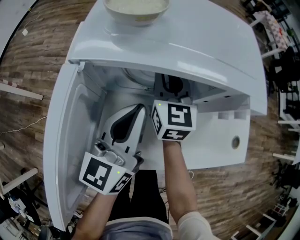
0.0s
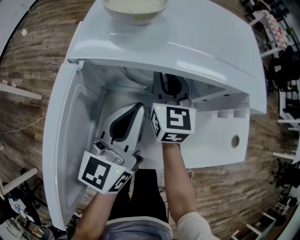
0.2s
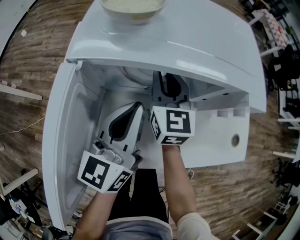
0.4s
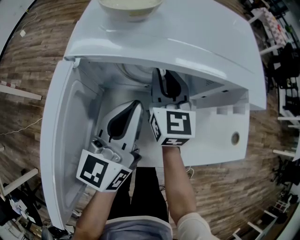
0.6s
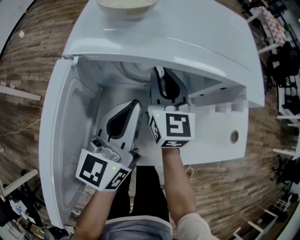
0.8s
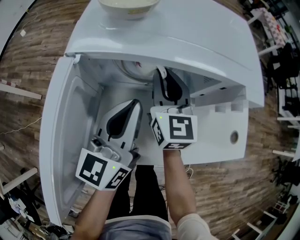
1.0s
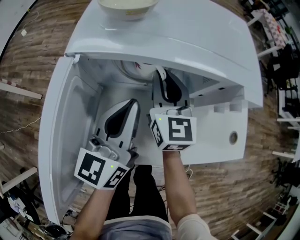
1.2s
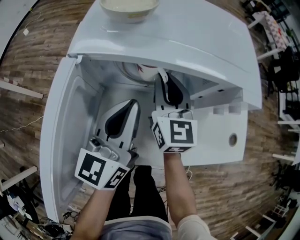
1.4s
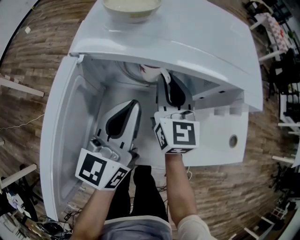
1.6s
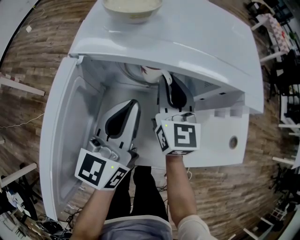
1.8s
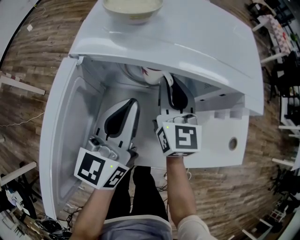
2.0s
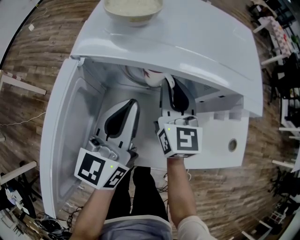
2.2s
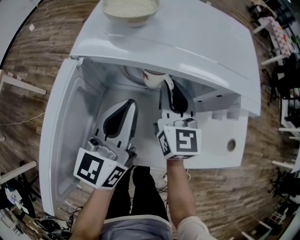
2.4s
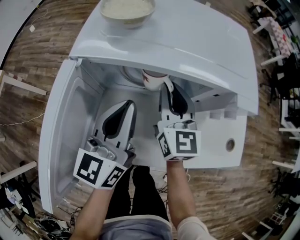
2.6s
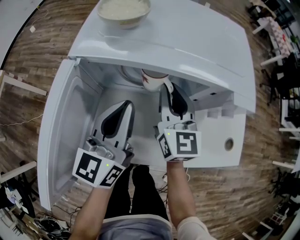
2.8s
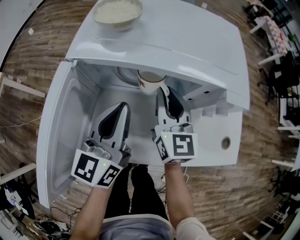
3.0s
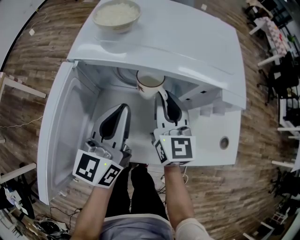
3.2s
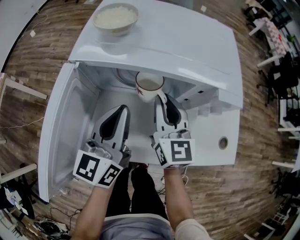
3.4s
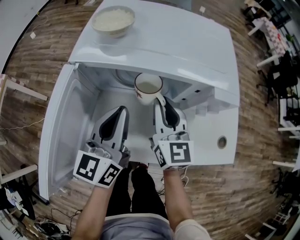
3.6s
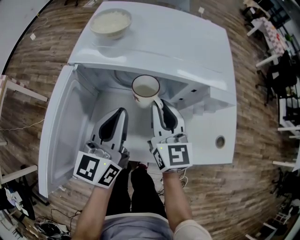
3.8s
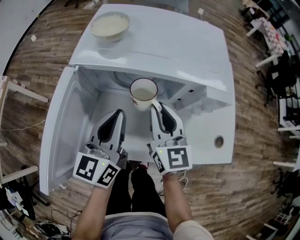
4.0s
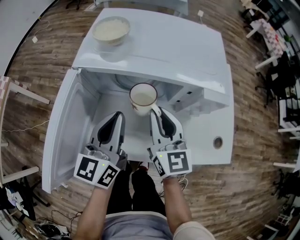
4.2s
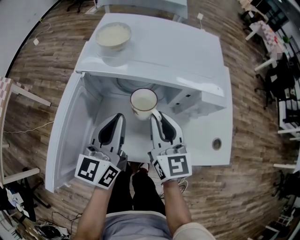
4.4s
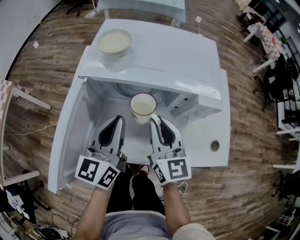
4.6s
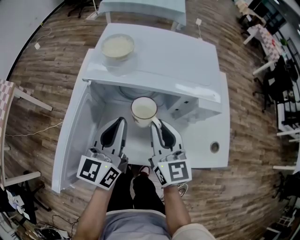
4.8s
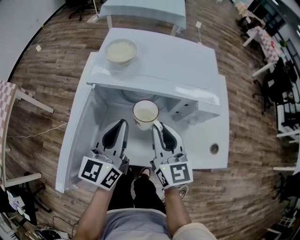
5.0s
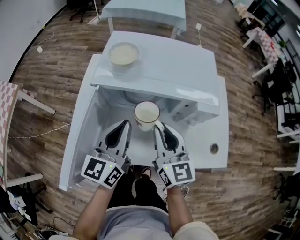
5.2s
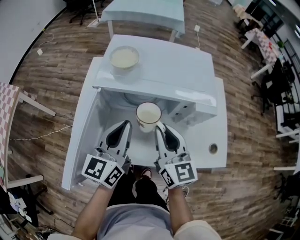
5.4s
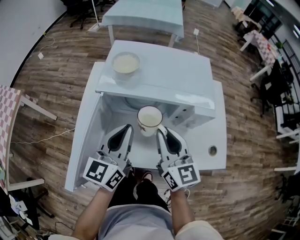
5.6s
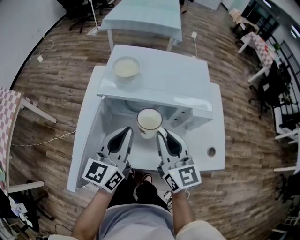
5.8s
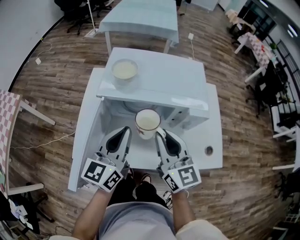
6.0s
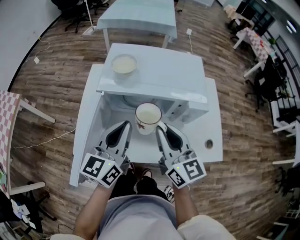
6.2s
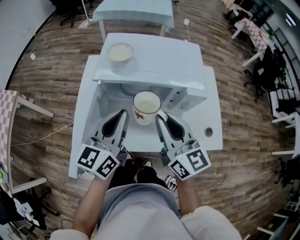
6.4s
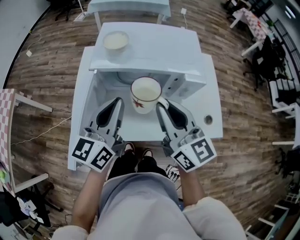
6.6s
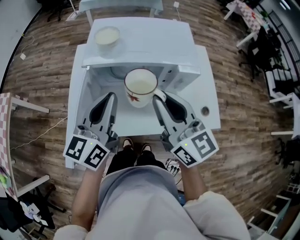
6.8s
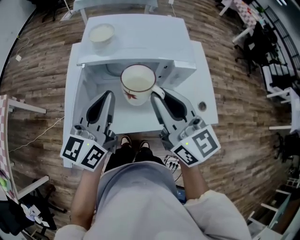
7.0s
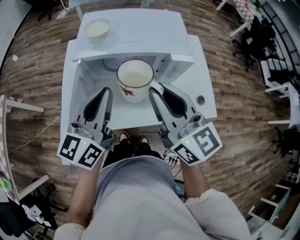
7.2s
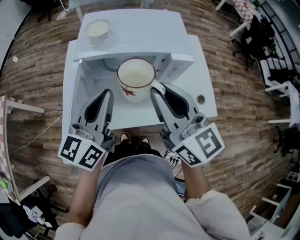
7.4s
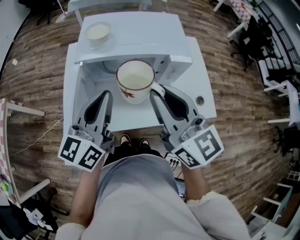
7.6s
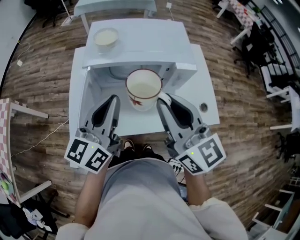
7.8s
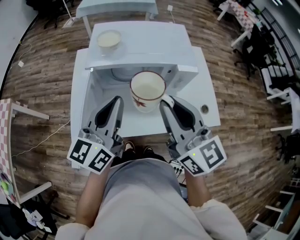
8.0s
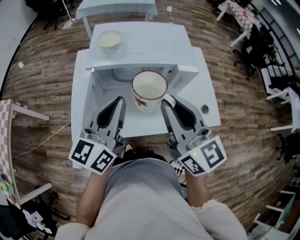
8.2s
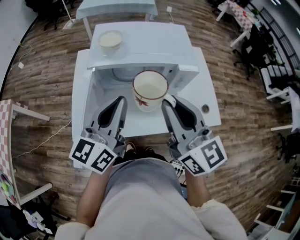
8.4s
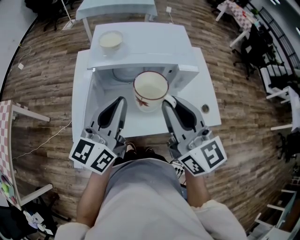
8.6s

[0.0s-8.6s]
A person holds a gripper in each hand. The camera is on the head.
0.0s to 1.4s: The right gripper changes place by some 5 cm.
1.4s to 2.8s: The grippers stay close to where they were, moving slightly.
2.8s to 4.4s: The right gripper travels backward by approximately 10 cm.
4.4s to 5.8s: The two grippers go some 10 cm upward.
5.8s to 7.2s: The right gripper heads upward and backward, covering some 10 cm. The left gripper travels upward by some 5 cm.
7.2s to 8.6s: There are only small adjustments of the grippers.

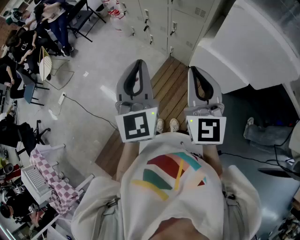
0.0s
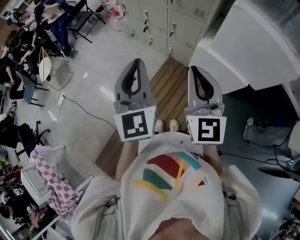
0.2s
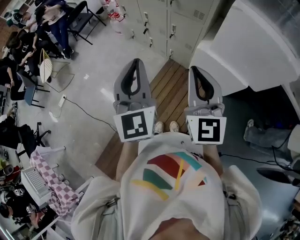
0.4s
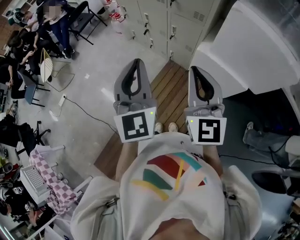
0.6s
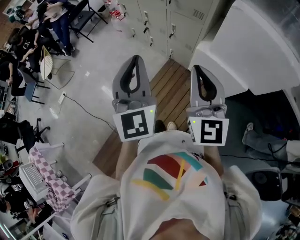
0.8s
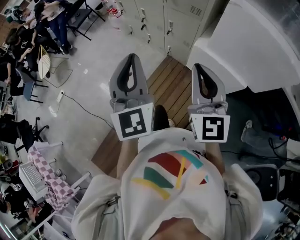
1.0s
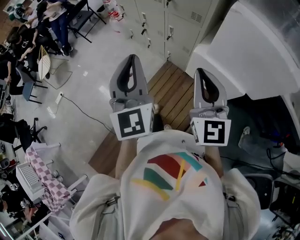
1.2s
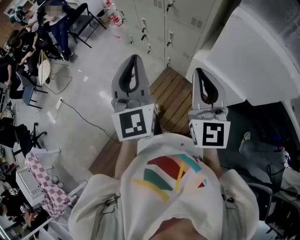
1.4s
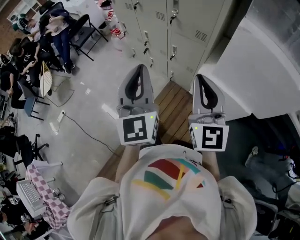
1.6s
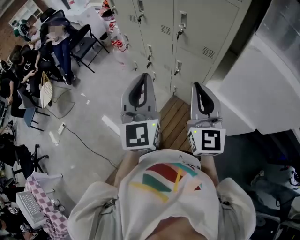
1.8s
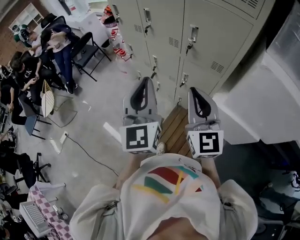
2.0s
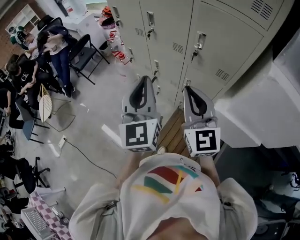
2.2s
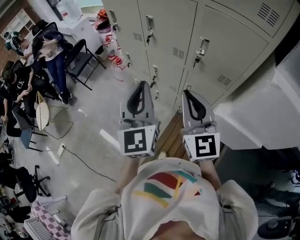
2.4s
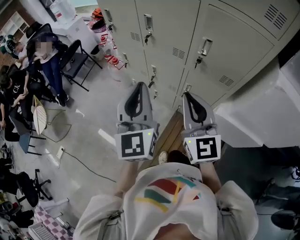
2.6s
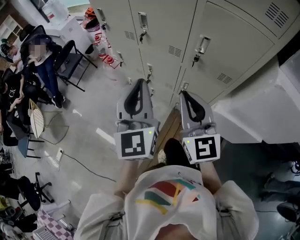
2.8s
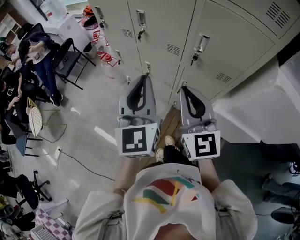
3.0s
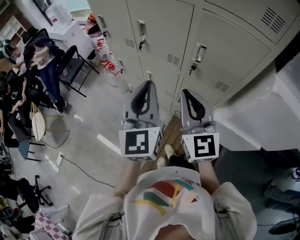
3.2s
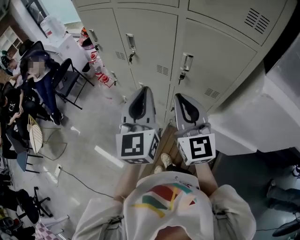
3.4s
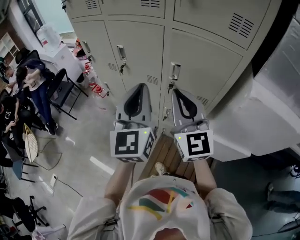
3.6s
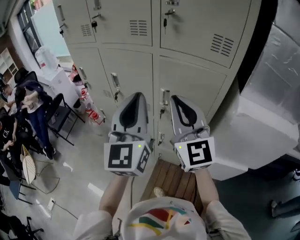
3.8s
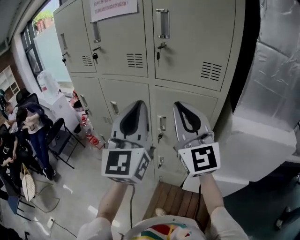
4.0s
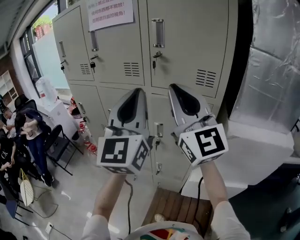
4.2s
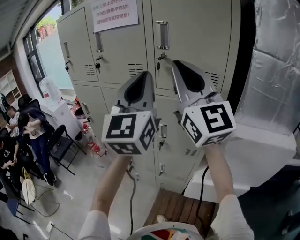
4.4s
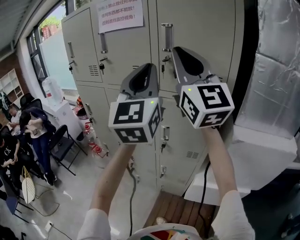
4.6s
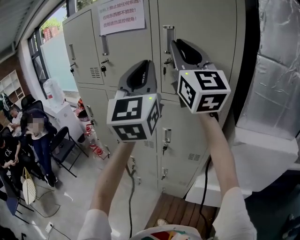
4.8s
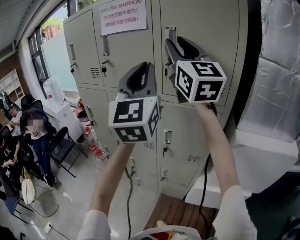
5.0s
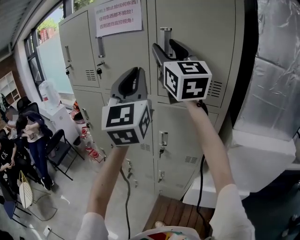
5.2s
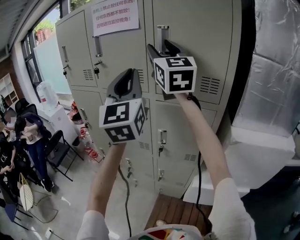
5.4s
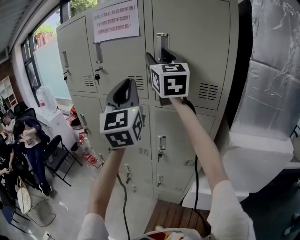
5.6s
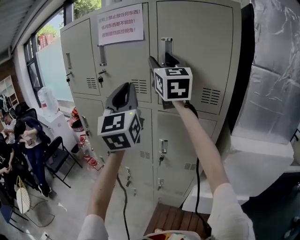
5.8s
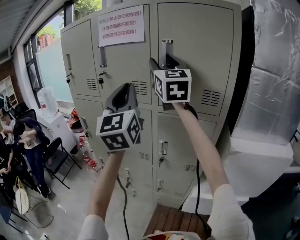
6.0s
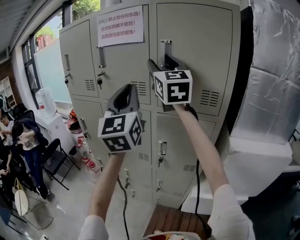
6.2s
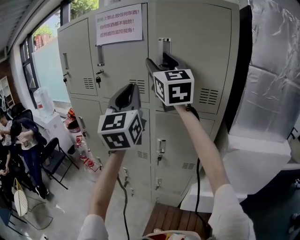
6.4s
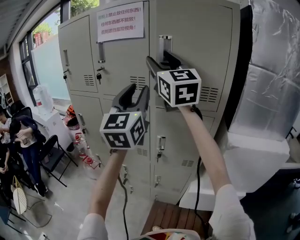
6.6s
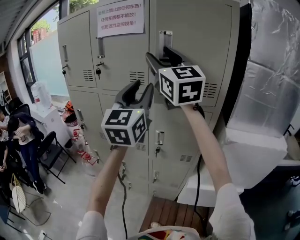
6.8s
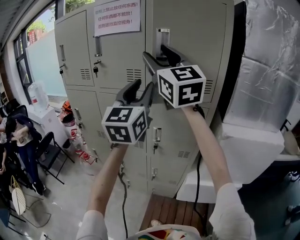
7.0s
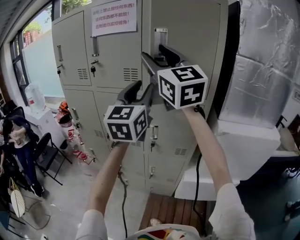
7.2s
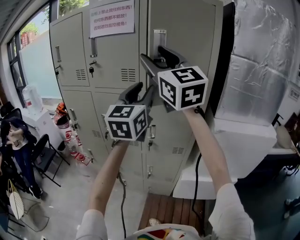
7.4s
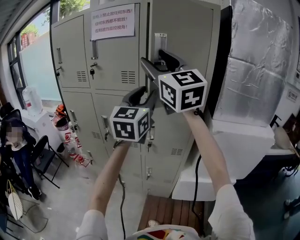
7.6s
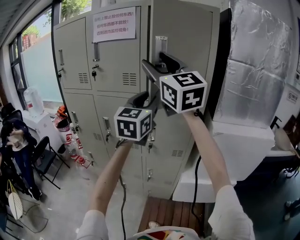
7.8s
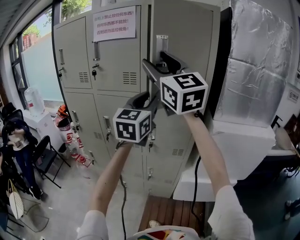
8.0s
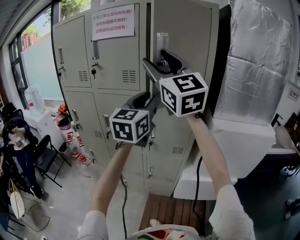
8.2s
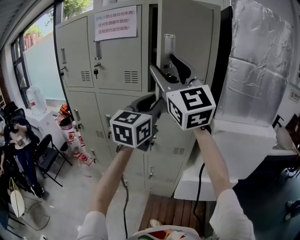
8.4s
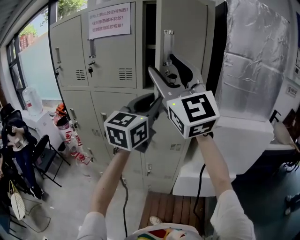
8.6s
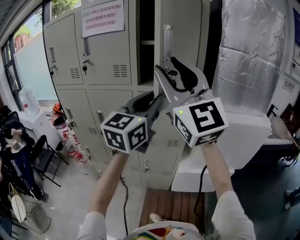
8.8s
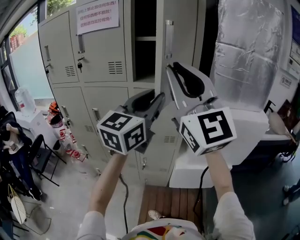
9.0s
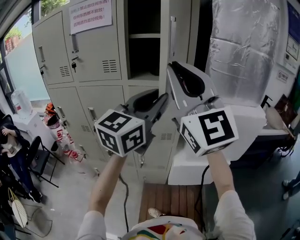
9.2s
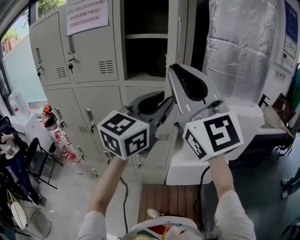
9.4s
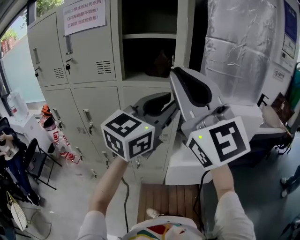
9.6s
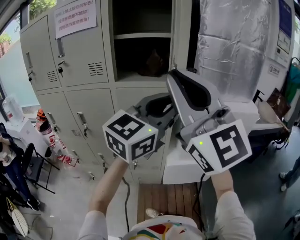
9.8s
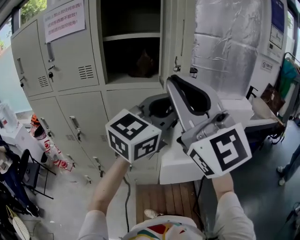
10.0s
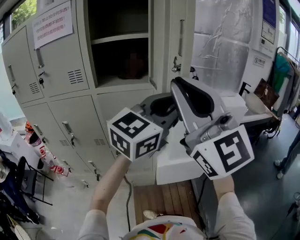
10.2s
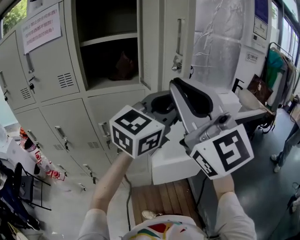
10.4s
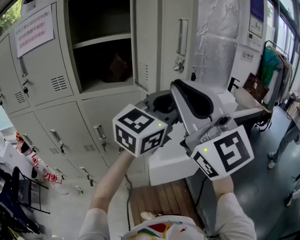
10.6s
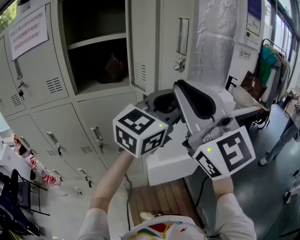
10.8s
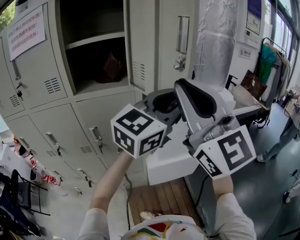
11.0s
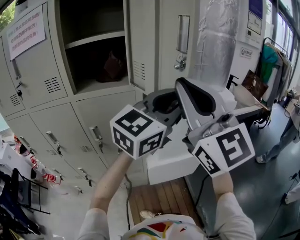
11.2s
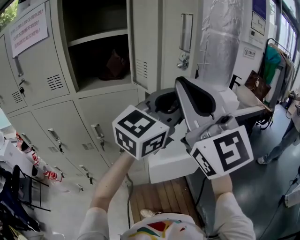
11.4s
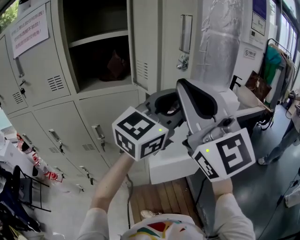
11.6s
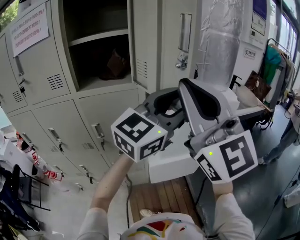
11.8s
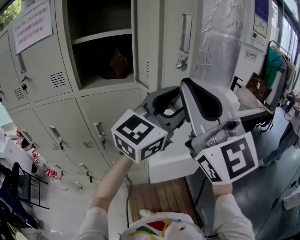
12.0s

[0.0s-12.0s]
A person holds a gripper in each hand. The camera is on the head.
0.0s to 1.6s: The left gripper is displaced forward by some 15 cm. The right gripper shifts roughly 15 cm forward and to the right.
1.6s to 3.0s: The right gripper moves forward and to the left, approximately 30 cm. Meanwhile the left gripper travels forward by about 25 cm.
3.0s to 4.4s: The left gripper is displaced upward and to the right by about 30 cm, and rotates some 30 degrees. The right gripper is displaced upward by about 35 cm, and rotates about 30 degrees.
4.4s to 6.0s: The left gripper shifts approximately 10 cm to the left and forward. Meanwhile the right gripper shifts about 15 cm forward, and opens.
6.0s to 7.6s: The left gripper moves to the right and downward, about 10 cm, turns by roughly 30 degrees, and opens; the right gripper is displaced backward by some 15 cm.
7.6s to 9.0s: The grippers both shift backward and to the right by approximately 15 cm. The left gripper rotates approximately 20 degrees; the right gripper closes up.
9.0s to 10.4s: The left gripper travels to the right by about 20 cm, and turns by roughly 30 degrees; the right gripper is displaced to the right by roughly 10 cm.
10.4s to 12.0s: The left gripper opens up.

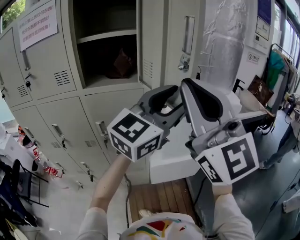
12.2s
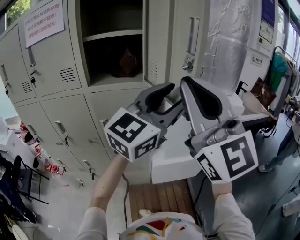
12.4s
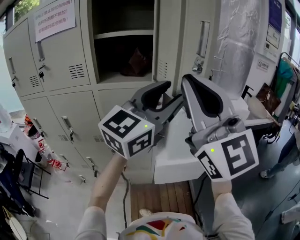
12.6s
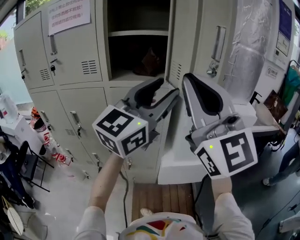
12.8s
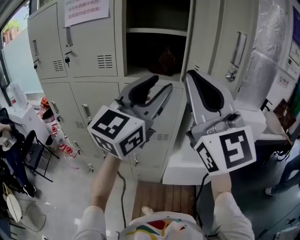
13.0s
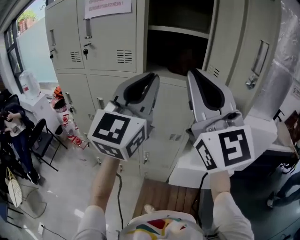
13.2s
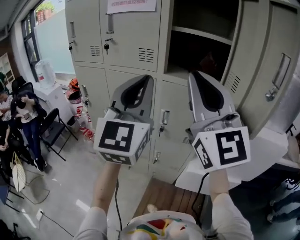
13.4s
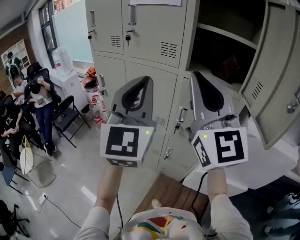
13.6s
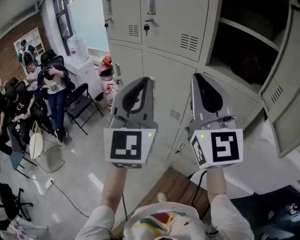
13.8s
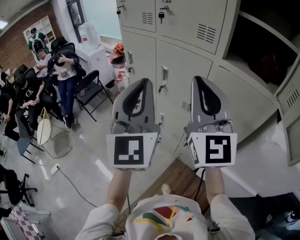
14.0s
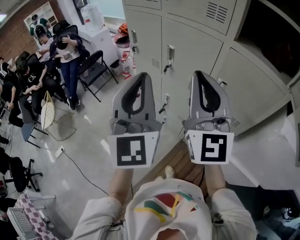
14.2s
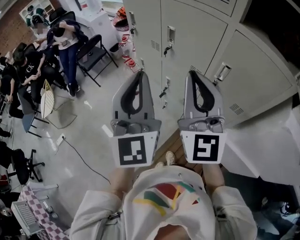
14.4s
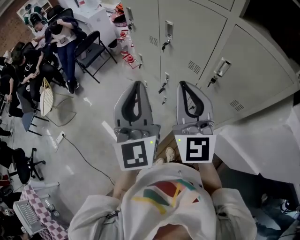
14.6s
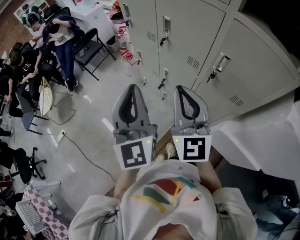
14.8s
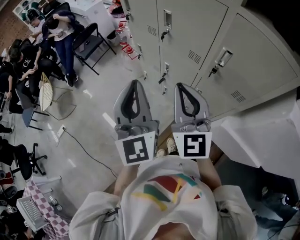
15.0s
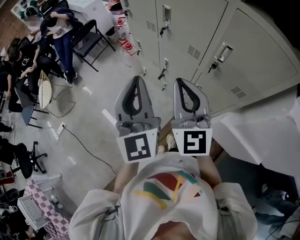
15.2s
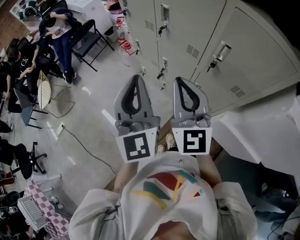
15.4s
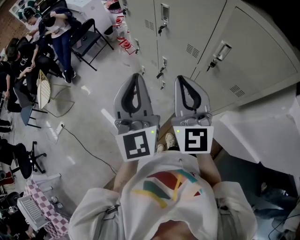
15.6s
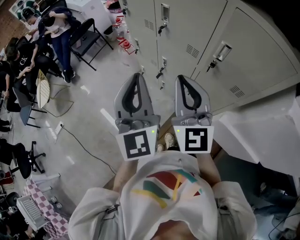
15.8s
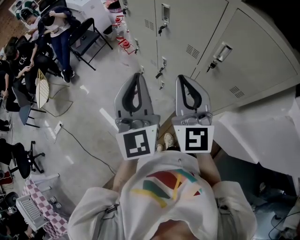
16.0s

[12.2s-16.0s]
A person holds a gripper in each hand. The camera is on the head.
12.2s to 13.4s: The left gripper shifts by roughly 30 cm, changes its angle by about 60 degrees, and closes. Meanwhile the right gripper shifts by approximately 20 cm, and swivels approximately 20 degrees.
13.4s to 14.8s: Both grippers travel together downward, approximately 25 cm. The left gripper swivels approximately 40 degrees; the right gripper swivels approximately 30 degrees.
14.8s to 16.0s: The grippers move only a little.
